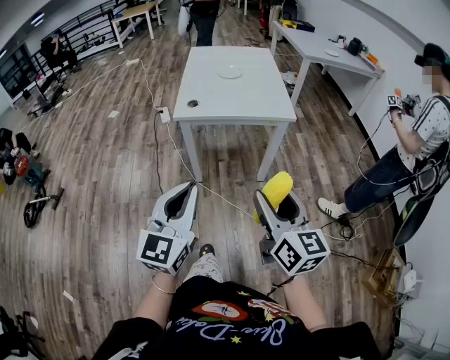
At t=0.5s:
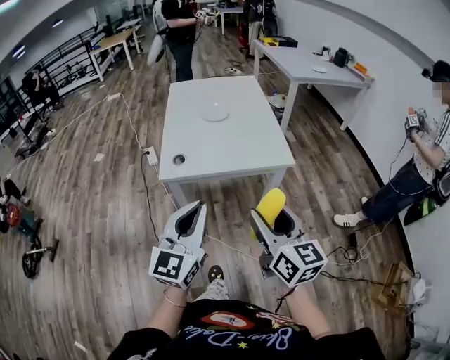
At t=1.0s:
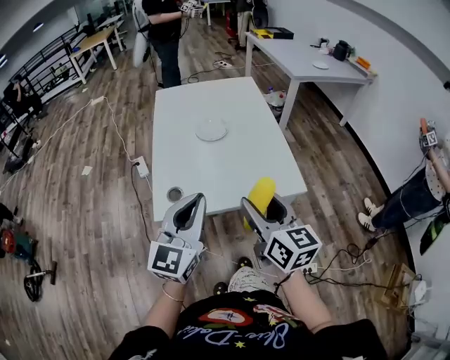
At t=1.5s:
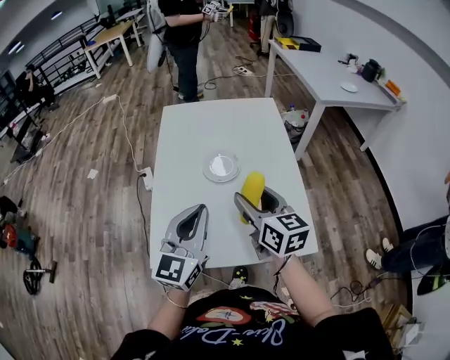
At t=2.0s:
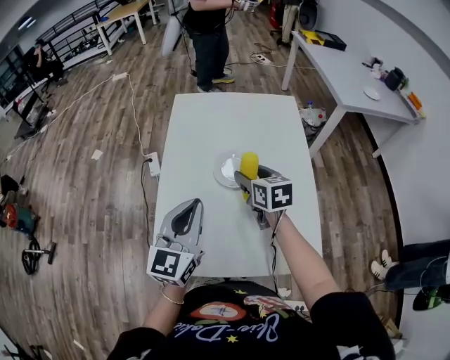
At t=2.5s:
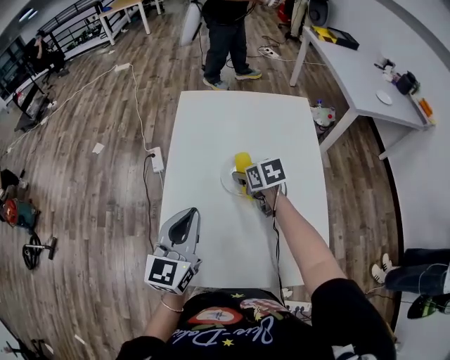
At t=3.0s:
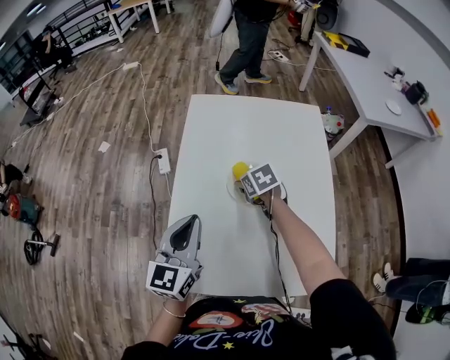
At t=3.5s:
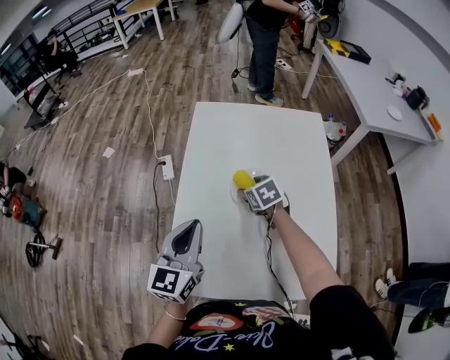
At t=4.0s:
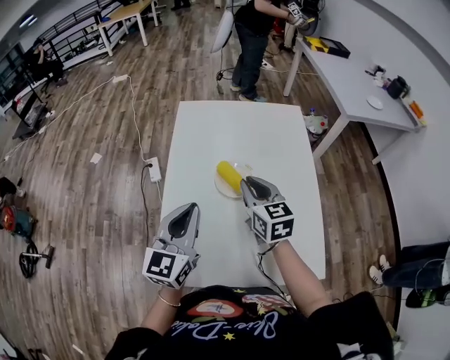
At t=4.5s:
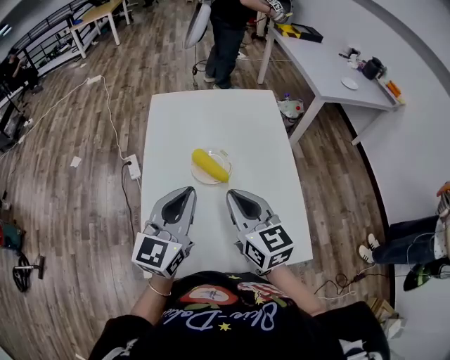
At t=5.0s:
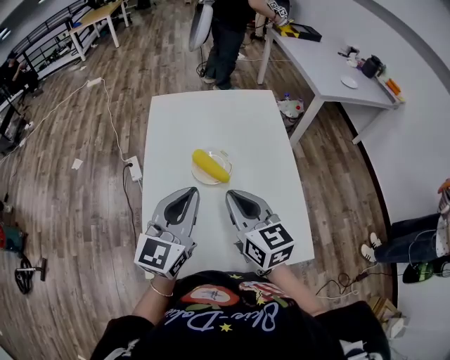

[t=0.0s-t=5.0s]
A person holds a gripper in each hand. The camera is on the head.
t=0.0s to t=2.5s: The pair of grippers is taken forward, roughly 80 cm. The right gripper points its fingers approximately 50 degrees further downward.
t=2.5s to t=5.0s: The right gripper goes some 25 cm backward and upward, angles its fingers upward, by some 30 degrees, and closes up, while the left gripper moves to the right, approximately 5 cm.

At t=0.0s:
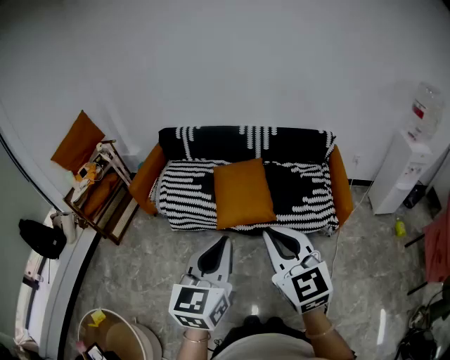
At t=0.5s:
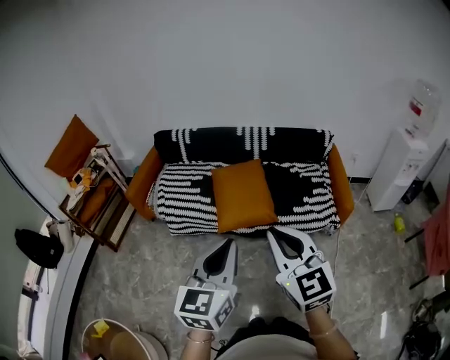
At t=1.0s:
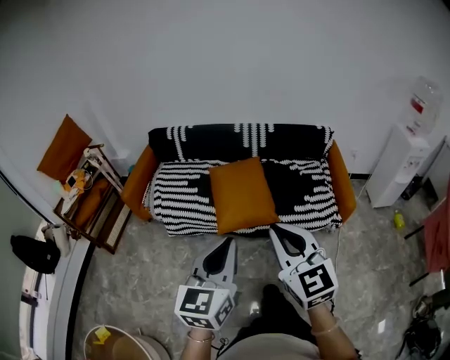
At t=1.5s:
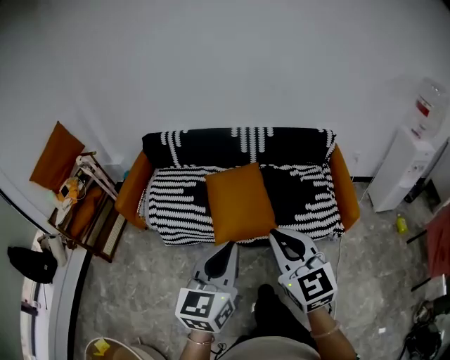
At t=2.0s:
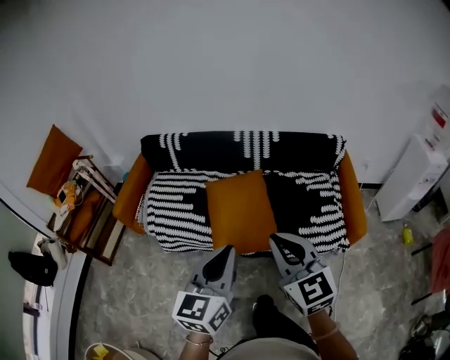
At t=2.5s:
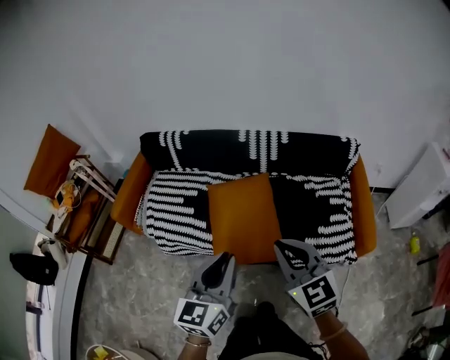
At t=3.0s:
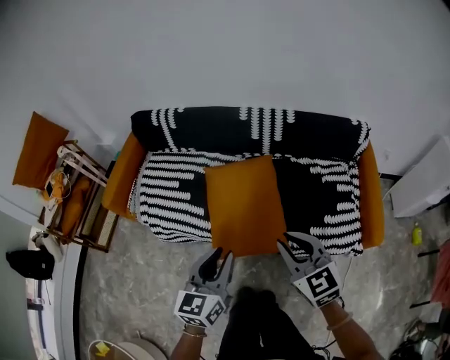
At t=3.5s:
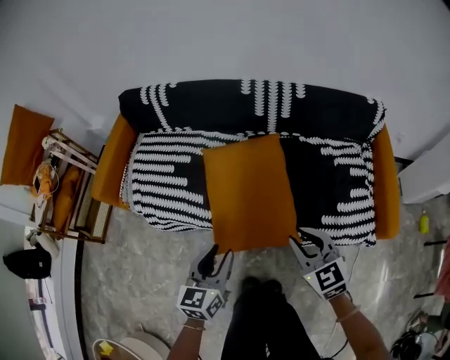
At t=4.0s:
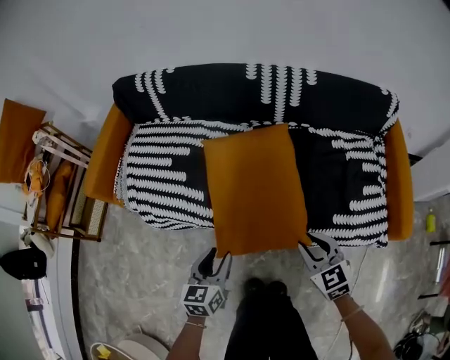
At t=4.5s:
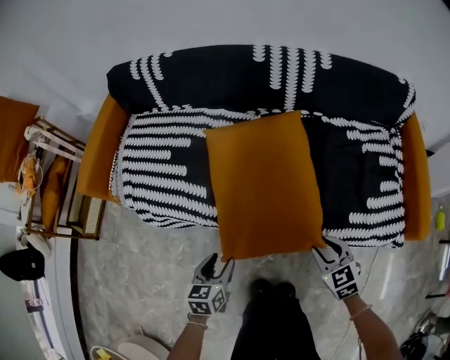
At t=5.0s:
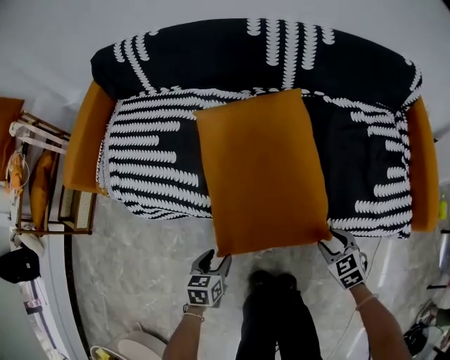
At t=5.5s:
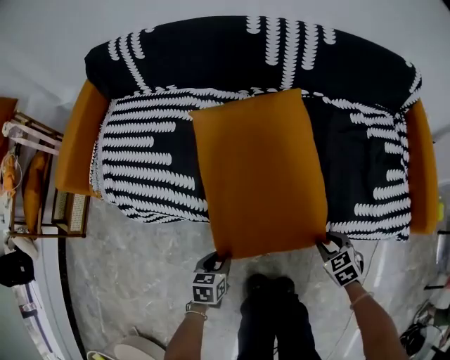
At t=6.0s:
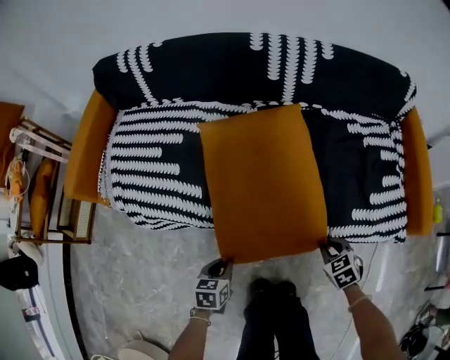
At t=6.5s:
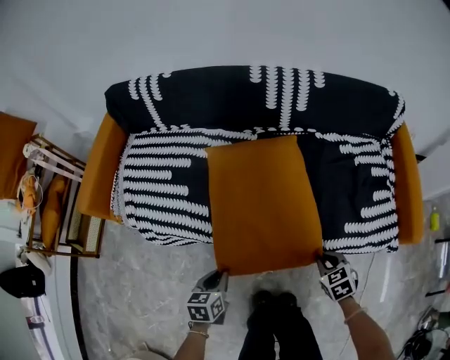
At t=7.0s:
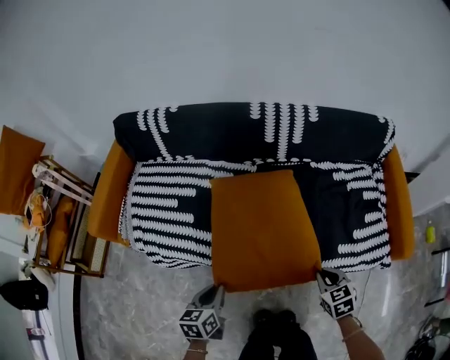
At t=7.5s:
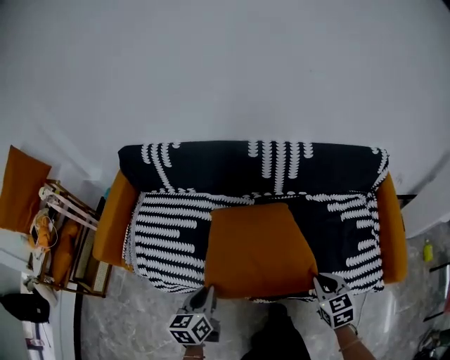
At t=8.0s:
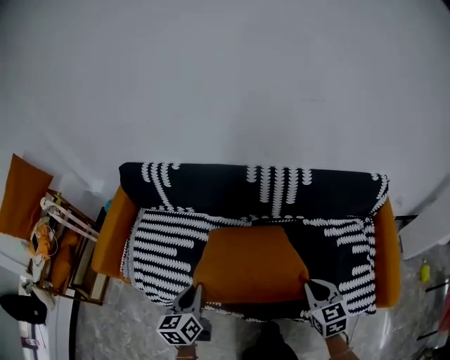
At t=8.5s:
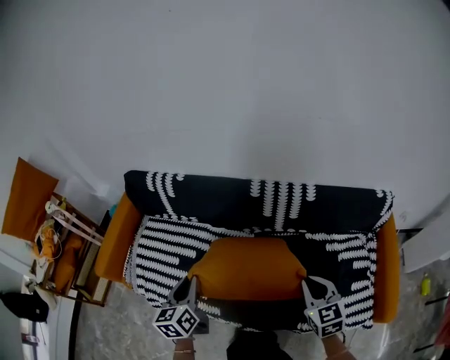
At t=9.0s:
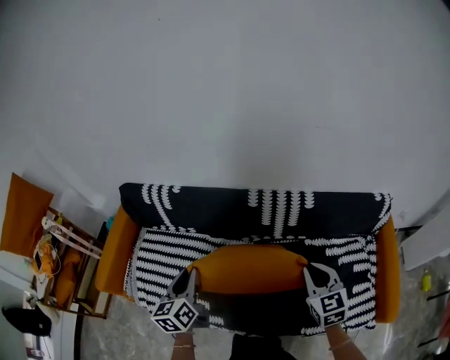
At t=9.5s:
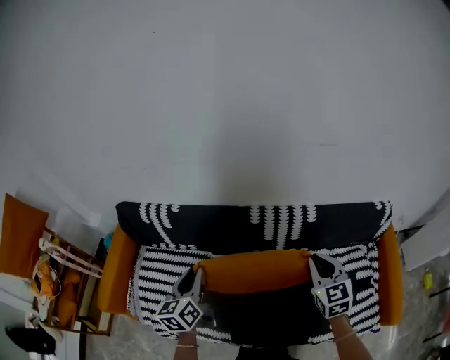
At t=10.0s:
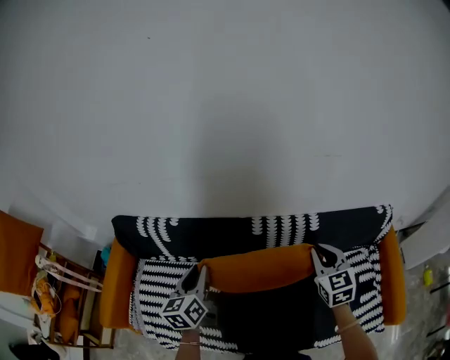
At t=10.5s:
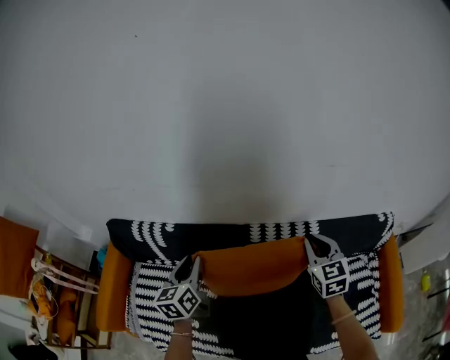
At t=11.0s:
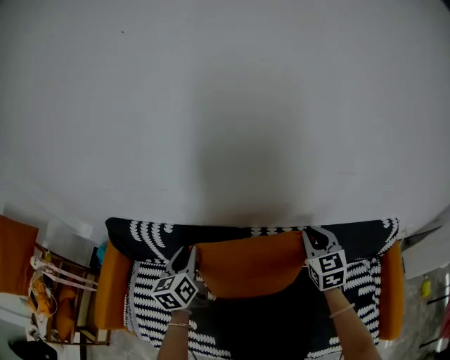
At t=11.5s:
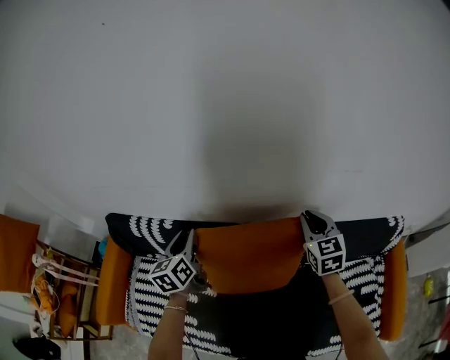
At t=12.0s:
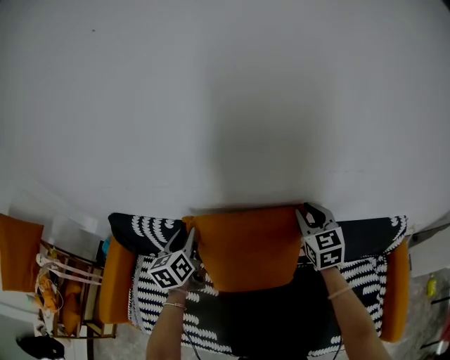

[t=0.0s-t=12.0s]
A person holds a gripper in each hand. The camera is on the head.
t=0.0s to t=2.0s: Both grippers travel together forward, about 30 cm.
t=2.0s to t=4.0s: Both grippers travel together downward and forward, approximately 50 cm. The right gripper swivels about 30 degrees, and opens its fingers. Meanwhile the left gripper turns by roughly 30 degrees, and opens its fingers.
t=4.0s to t=6.0s: The two grippers go about 25 cm downward. The right gripper changes its angle by roughly 30 degrees; the left gripper swivels about 30 degrees, and closes its fingers.
t=6.0s to t=8.0s: Both grippers travel together upward and forward, approximately 40 cm. The left gripper turns by roughly 30 degrees. Meanwhile the right gripper swivels approximately 30 degrees.
t=8.0s to t=10.0s: The two grippers go approximately 35 cm forward.
t=10.0s to t=12.0s: Both grippers travel together forward, some 20 cm.

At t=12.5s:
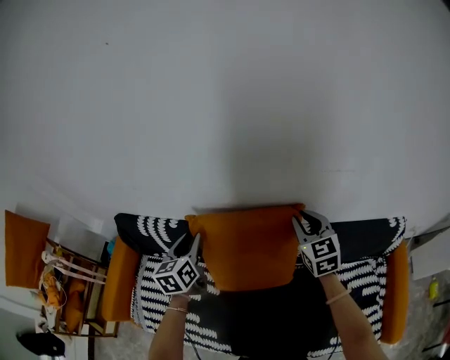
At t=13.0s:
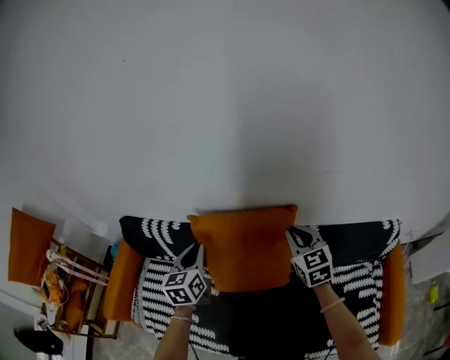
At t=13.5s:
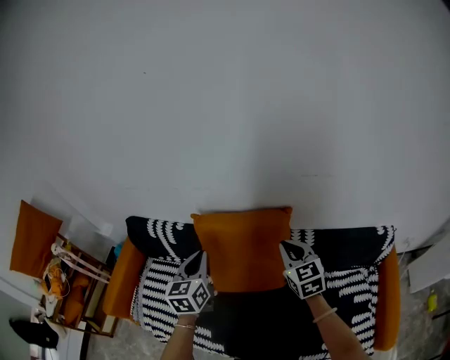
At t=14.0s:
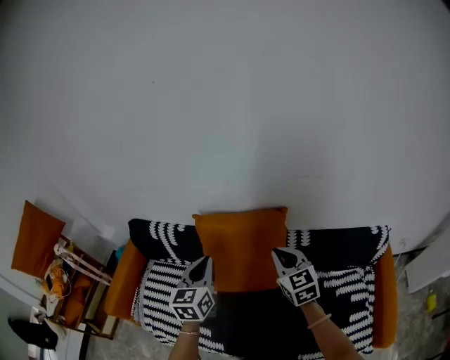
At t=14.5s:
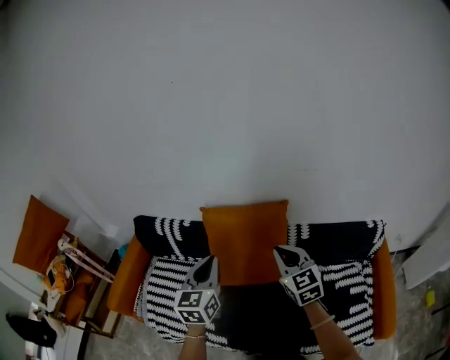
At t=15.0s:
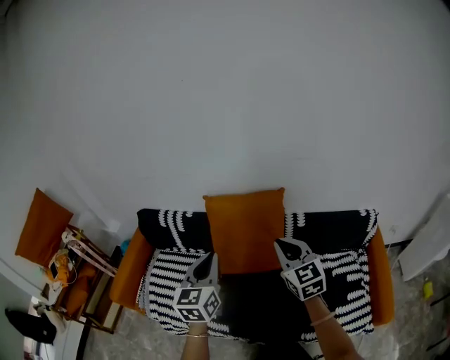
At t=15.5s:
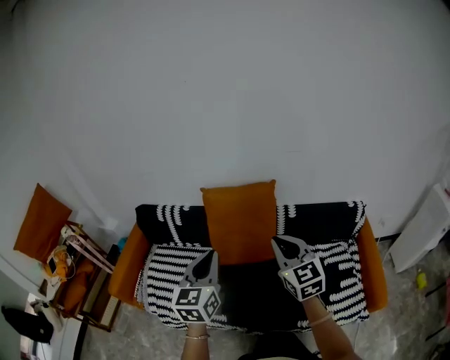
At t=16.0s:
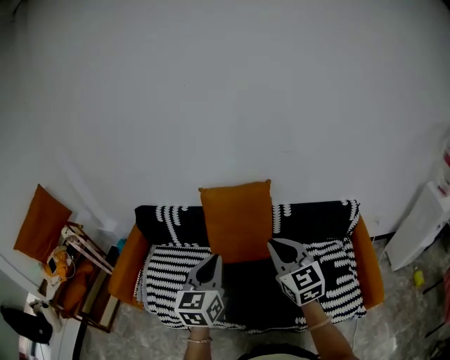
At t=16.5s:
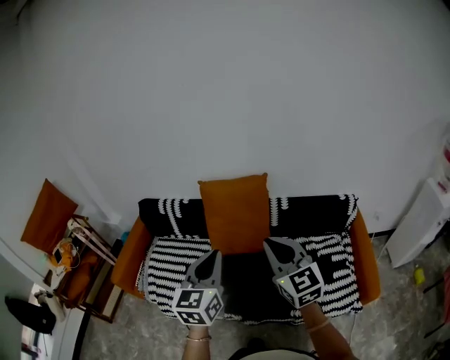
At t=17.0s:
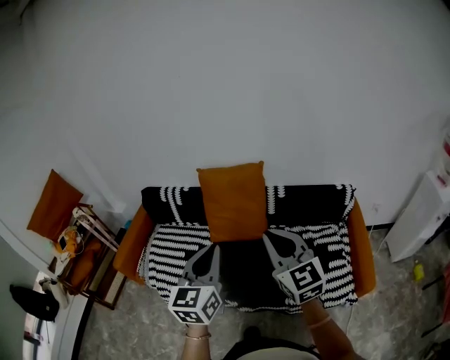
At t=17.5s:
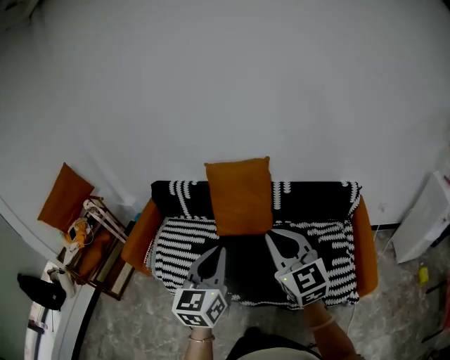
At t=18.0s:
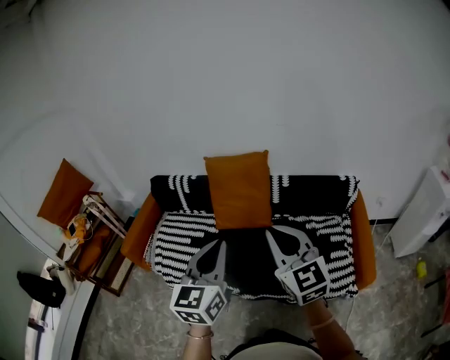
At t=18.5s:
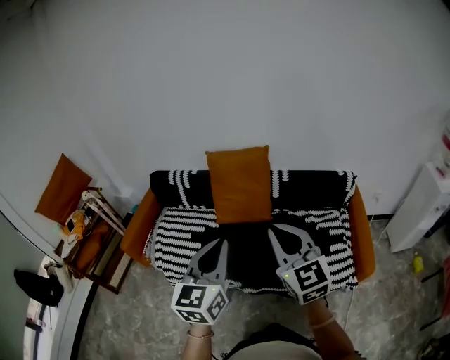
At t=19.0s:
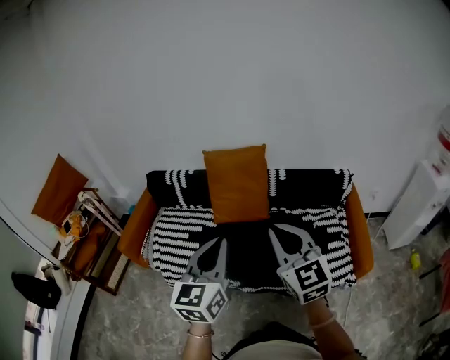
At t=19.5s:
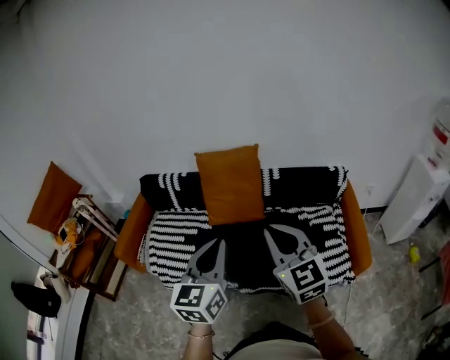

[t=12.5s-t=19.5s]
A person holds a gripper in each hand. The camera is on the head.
t=12.5s to t=14.5s: The right gripper heads backward, covering about 25 cm; the left gripper goes about 30 cm backward and upward, and closes.
t=14.5s to t=16.0s: The two grippers go approximately 25 cm backward.
t=16.0s to t=17.5s: The grippers both shift backward and to the right by some 20 cm.
t=17.5s to t=19.5s: The right gripper heads backward, covering roughly 5 cm. The left gripper changes place by roughly 5 cm.

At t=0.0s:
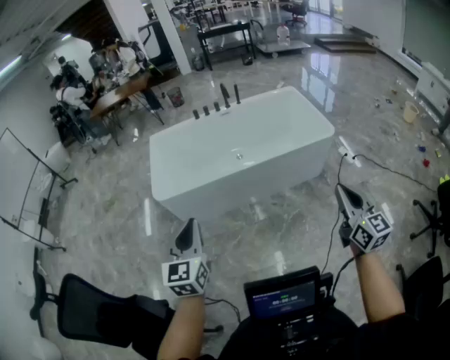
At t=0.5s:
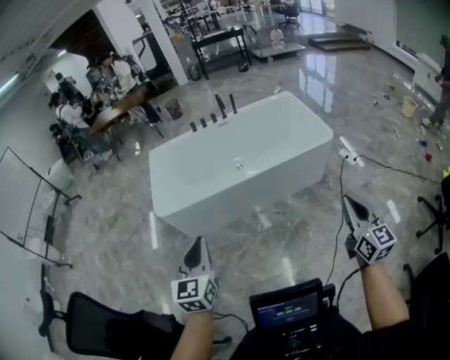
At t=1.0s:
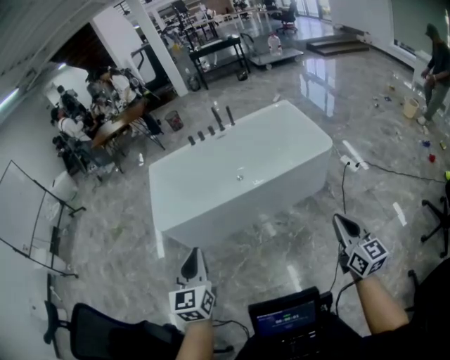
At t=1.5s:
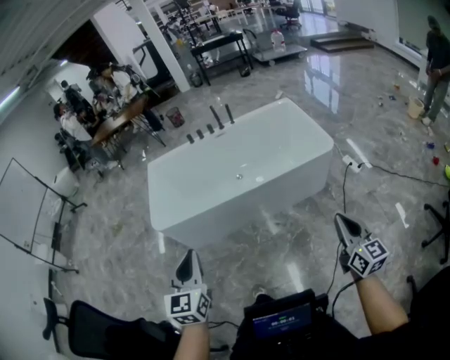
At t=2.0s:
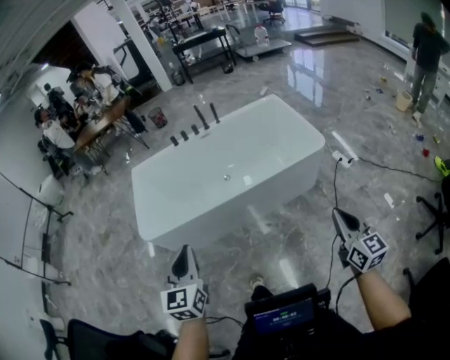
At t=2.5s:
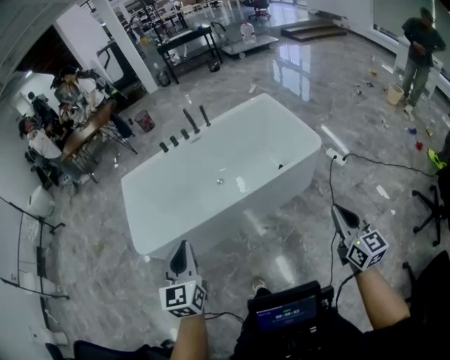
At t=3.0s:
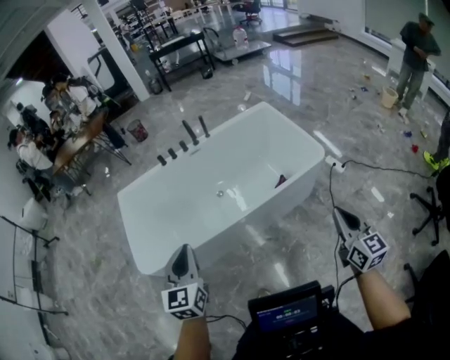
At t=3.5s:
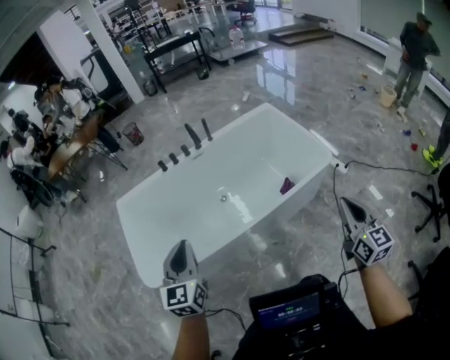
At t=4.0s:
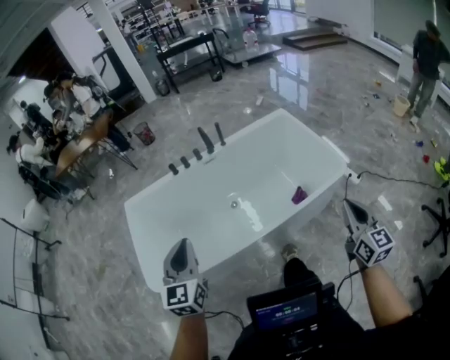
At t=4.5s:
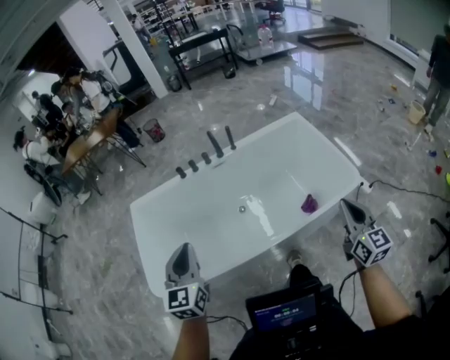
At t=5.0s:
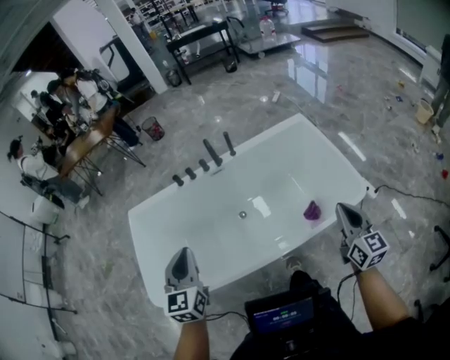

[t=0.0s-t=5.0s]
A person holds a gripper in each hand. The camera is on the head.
t=0.0s to t=2.5s: The right gripper is displaced forward, to the right and downward by approximately 20 cm, while the left gripper shifts roughly 25 cm forward and to the right.
t=2.5s to t=5.0s: The grippers both shift forward by roughly 40 cm.
